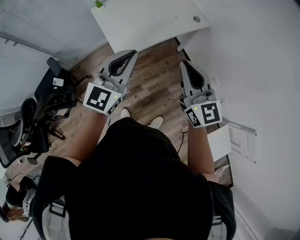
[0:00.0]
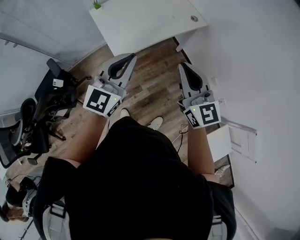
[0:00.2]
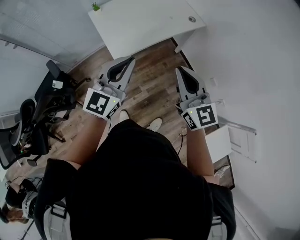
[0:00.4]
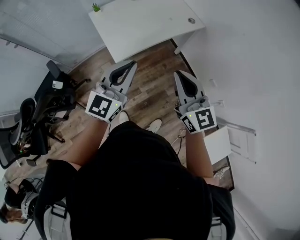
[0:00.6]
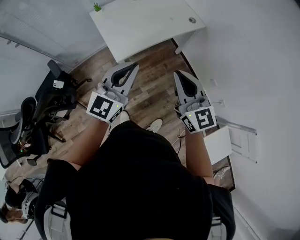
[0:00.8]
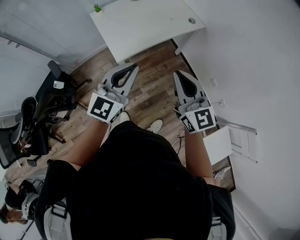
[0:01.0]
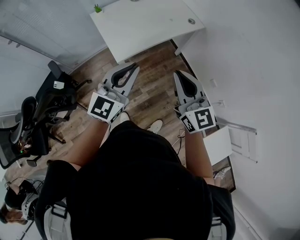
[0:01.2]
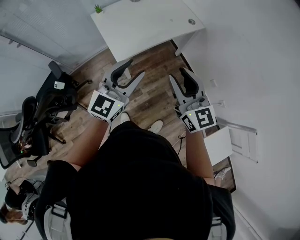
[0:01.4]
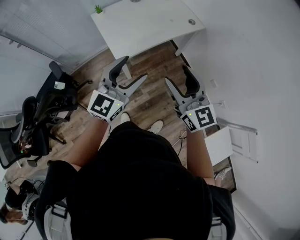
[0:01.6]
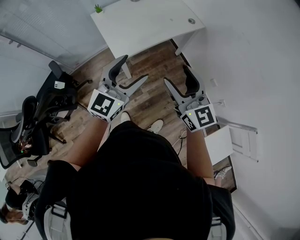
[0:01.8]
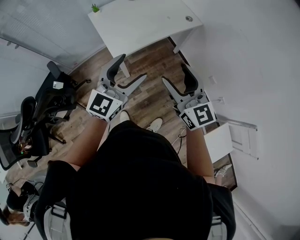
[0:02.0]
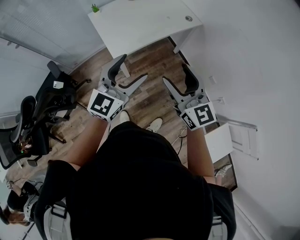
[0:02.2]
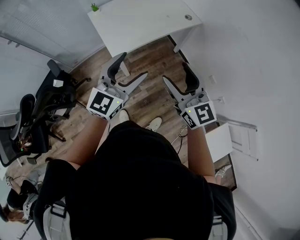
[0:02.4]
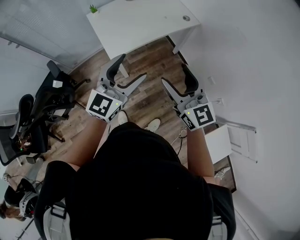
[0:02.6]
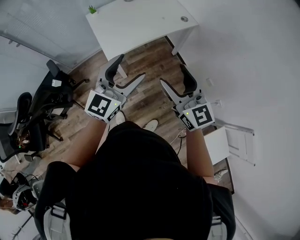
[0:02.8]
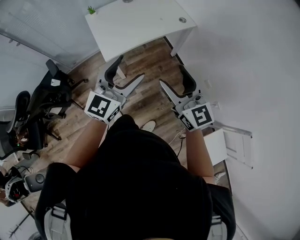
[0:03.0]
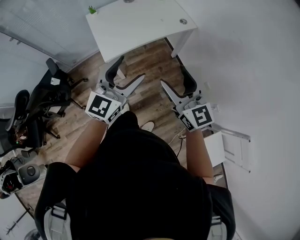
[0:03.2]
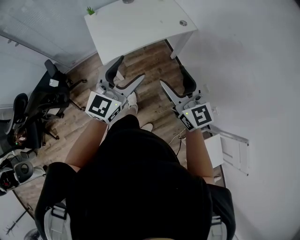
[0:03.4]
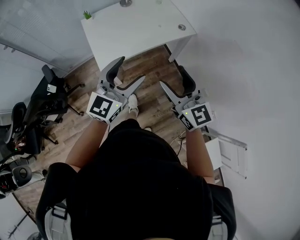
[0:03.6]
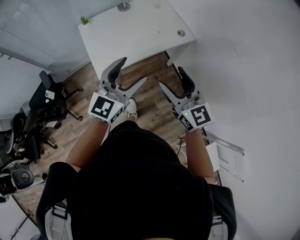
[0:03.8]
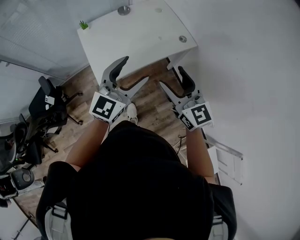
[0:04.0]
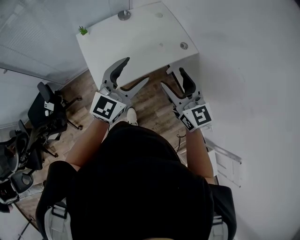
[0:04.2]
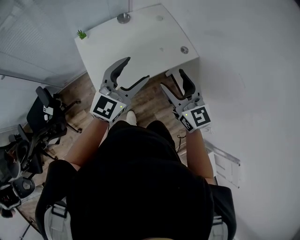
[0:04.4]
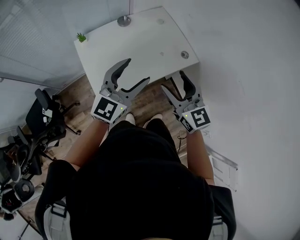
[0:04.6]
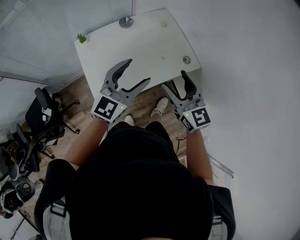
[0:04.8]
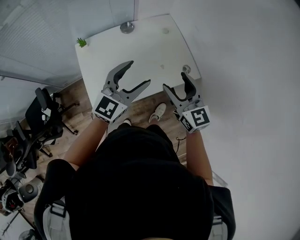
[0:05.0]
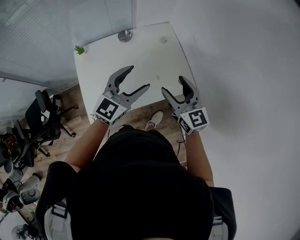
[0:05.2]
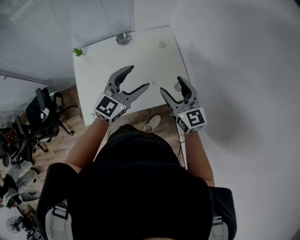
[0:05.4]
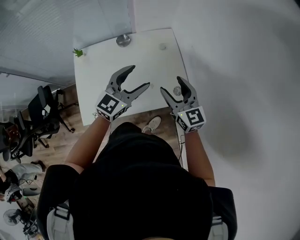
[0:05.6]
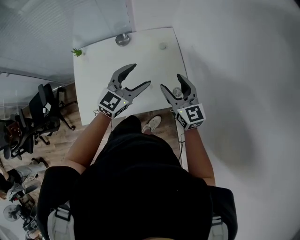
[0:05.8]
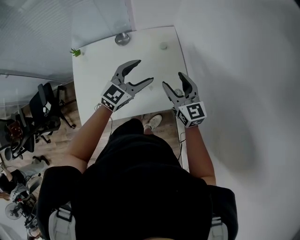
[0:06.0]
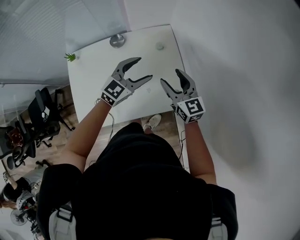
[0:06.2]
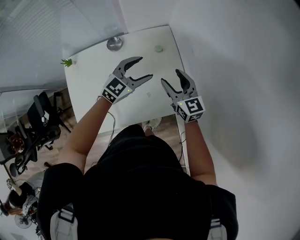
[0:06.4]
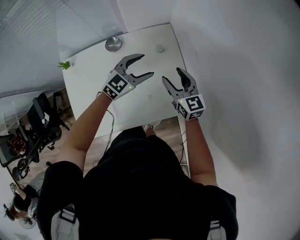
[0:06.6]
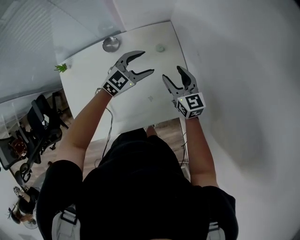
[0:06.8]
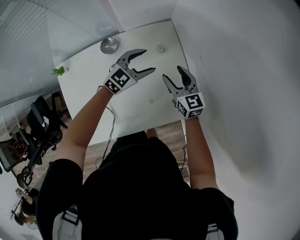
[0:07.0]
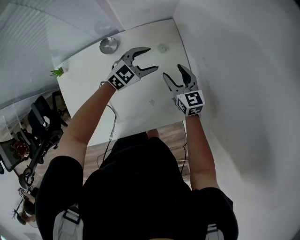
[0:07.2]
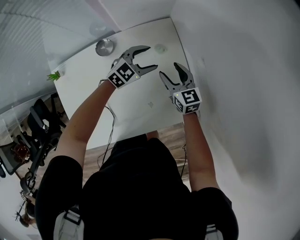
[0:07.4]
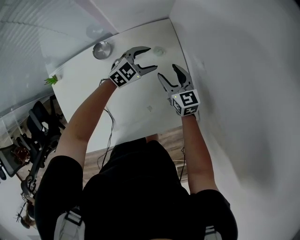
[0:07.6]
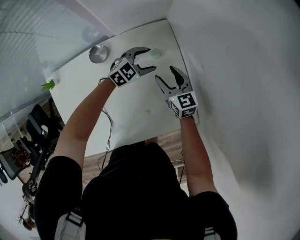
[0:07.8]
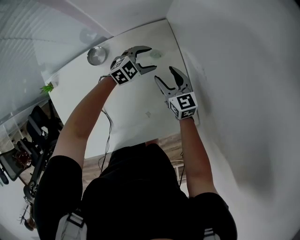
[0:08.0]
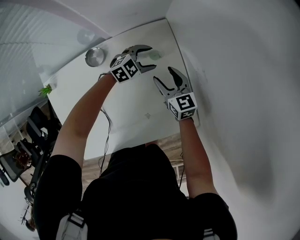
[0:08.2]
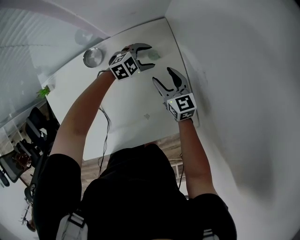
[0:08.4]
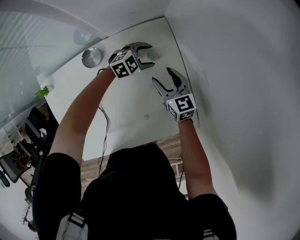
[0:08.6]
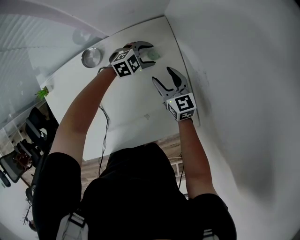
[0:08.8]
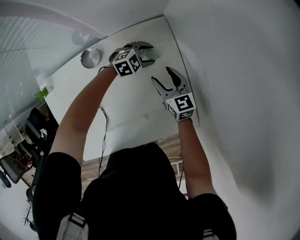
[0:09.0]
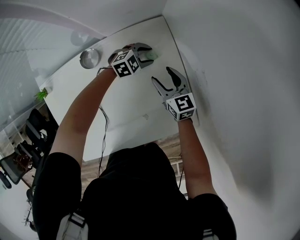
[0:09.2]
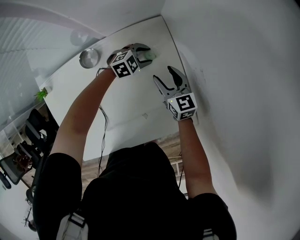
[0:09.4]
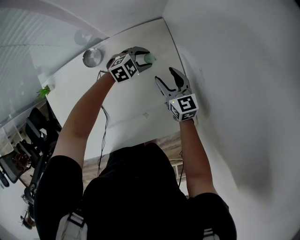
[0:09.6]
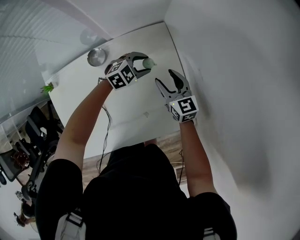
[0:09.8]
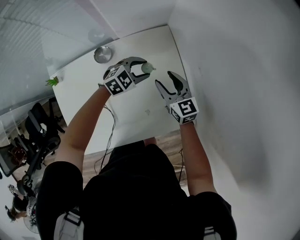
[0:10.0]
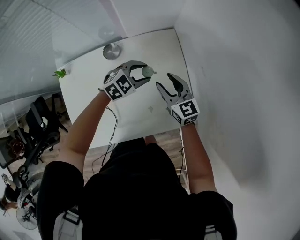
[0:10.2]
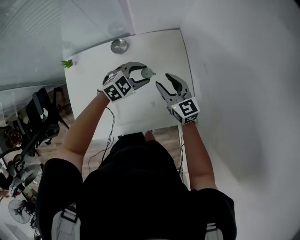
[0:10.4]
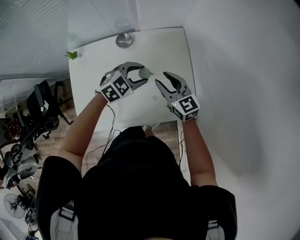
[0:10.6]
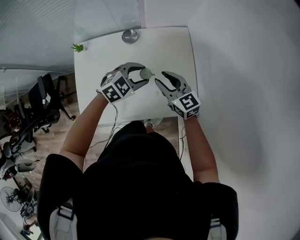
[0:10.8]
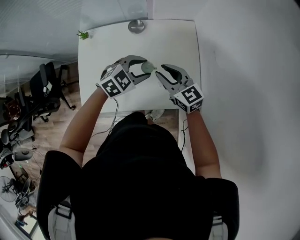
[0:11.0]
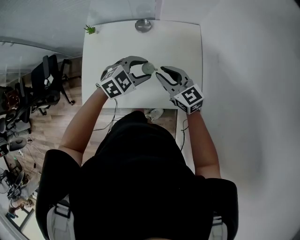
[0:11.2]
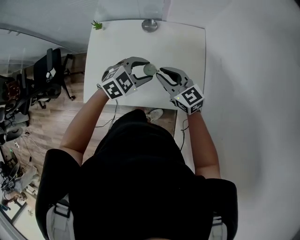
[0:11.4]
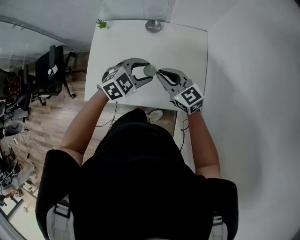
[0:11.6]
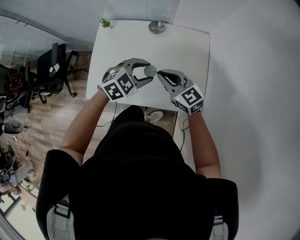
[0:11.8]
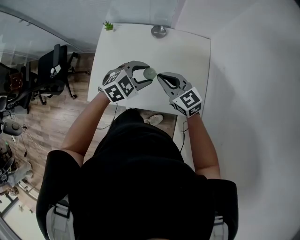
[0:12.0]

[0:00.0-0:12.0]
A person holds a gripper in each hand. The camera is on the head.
0:00.0 to 0:01.6: Both grippers move backward, roughly 5 cm. The right gripper opens; the left gripper opens its fingers.
0:01.6 to 0:03.0: The grippers both shift to the right by roughly 10 cm.
0:03.0 to 0:04.4: Both grippers travel together forward, roughly 30 cm.
0:04.4 to 0:06.0: Both grippers travel together forward and to the right, some 35 cm.
0:06.0 to 0:07.6: Both grippers move downward and forward, roughly 30 cm. The left gripper rotates some 30 degrees.
0:07.6 to 0:09.0: The right gripper moves about 5 cm. Meanwhile the left gripper shifts approximately 10 cm downward and forward, and swivels some 20 degrees.
0:09.0 to 0:10.4: Both grippers travel together upward and backward, about 20 cm.
0:10.4 to 0:12.0: The right gripper moves about 20 cm, rotates some 30 degrees, and closes up. Meanwhile the left gripper changes place by approximately 20 cm.

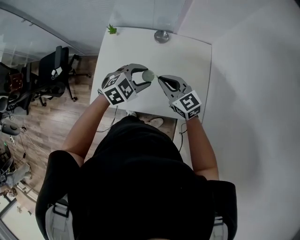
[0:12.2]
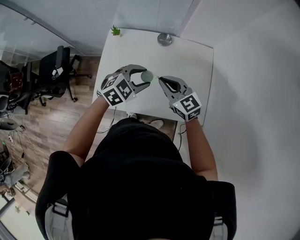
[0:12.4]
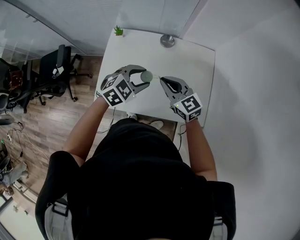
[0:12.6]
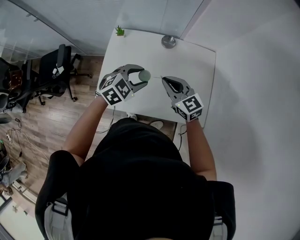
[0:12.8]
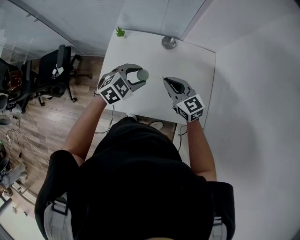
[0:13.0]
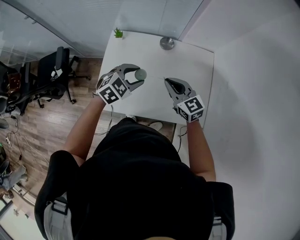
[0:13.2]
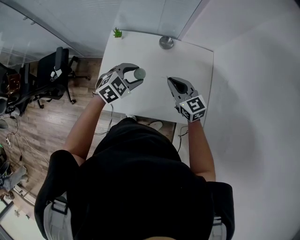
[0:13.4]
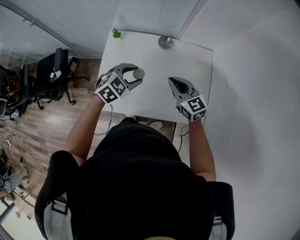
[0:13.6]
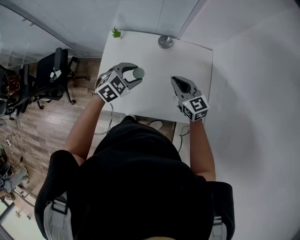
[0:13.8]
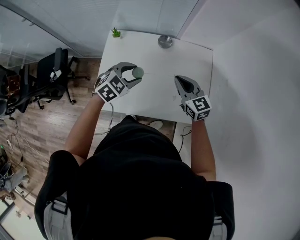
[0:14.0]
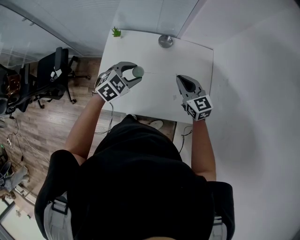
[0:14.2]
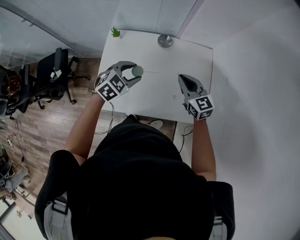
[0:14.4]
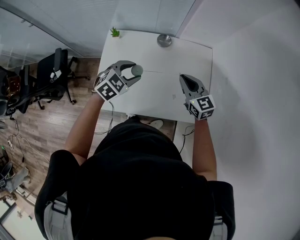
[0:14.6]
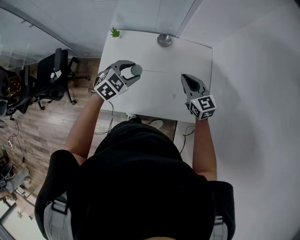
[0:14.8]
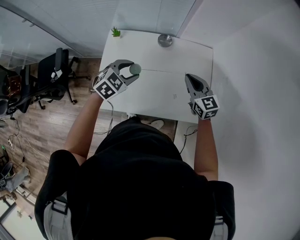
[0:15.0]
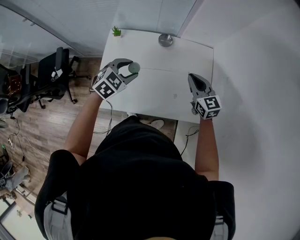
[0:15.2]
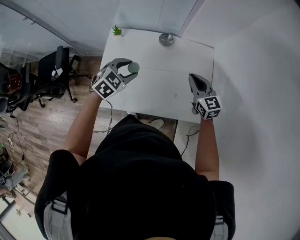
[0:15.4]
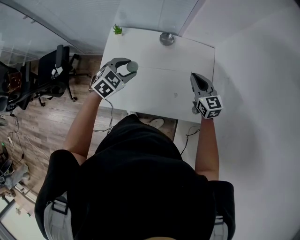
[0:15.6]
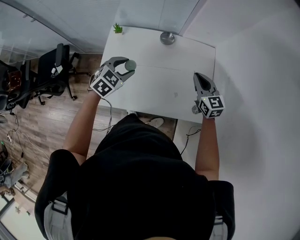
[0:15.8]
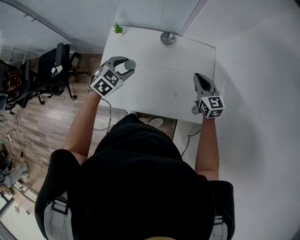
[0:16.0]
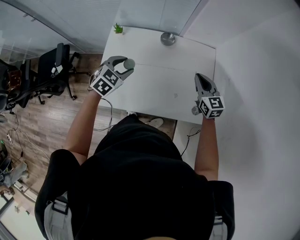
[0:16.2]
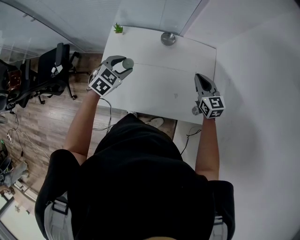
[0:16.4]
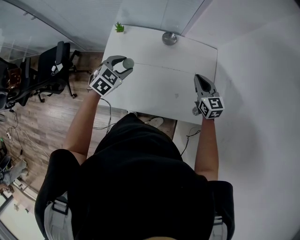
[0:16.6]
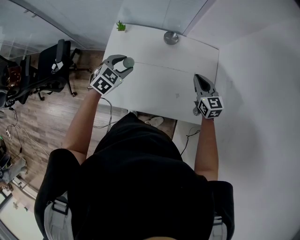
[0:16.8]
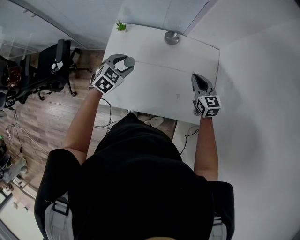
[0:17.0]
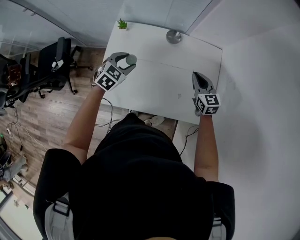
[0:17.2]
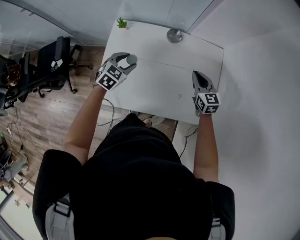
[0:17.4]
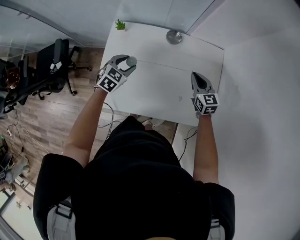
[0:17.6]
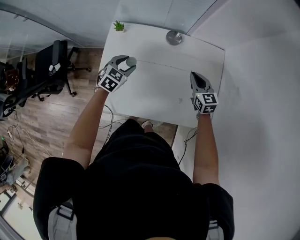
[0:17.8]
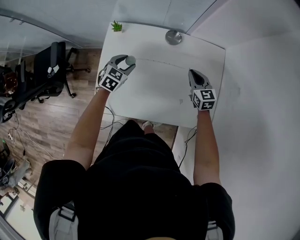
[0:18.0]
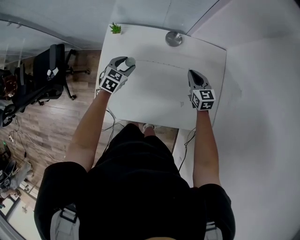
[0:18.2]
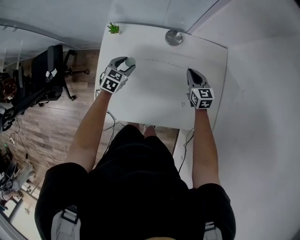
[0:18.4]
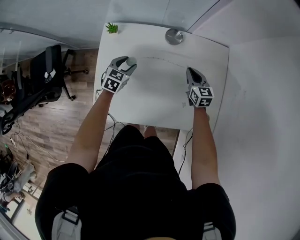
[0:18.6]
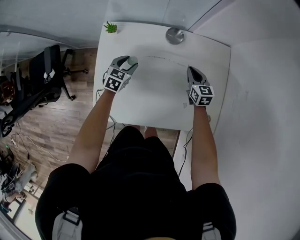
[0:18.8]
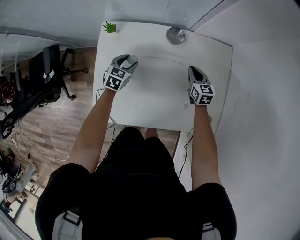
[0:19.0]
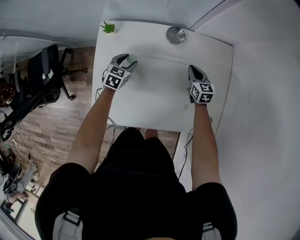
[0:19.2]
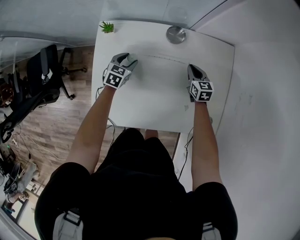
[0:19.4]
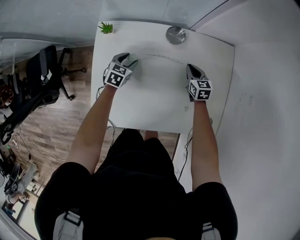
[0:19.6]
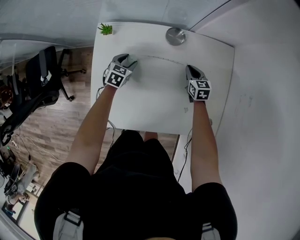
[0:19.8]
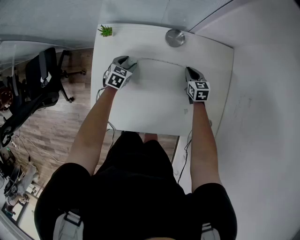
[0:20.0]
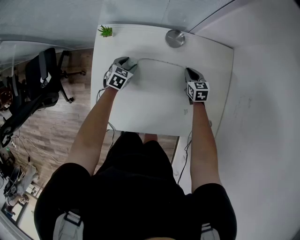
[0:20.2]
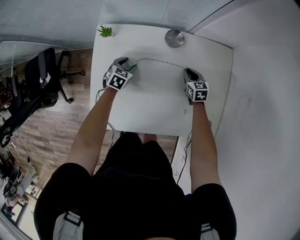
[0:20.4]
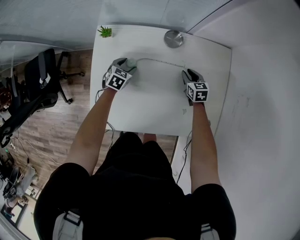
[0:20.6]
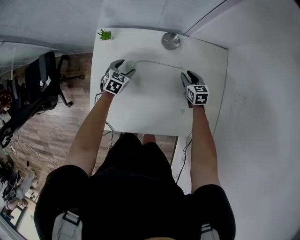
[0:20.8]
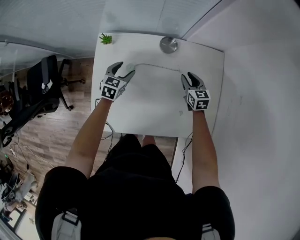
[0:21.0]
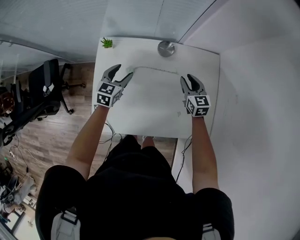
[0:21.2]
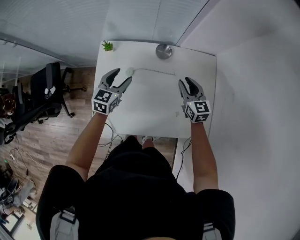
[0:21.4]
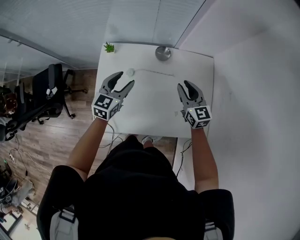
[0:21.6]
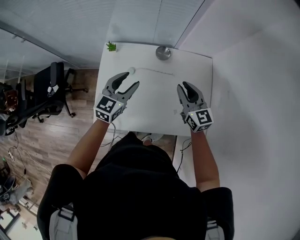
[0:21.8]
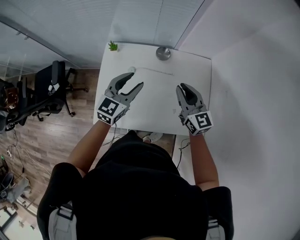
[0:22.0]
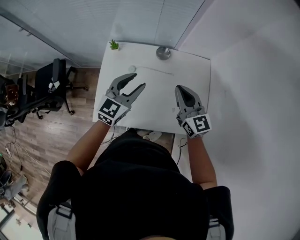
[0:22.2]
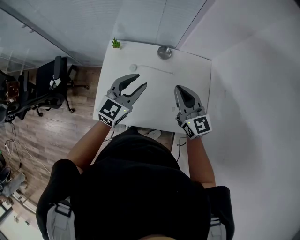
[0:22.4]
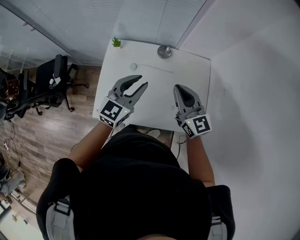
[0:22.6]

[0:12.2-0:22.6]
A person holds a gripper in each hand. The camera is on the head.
0:12.2 to 0:13.6: The left gripper travels to the left by roughly 10 cm.
0:13.6 to 0:15.2: The right gripper travels to the right by some 10 cm.
0:15.2 to 0:16.6: The grippers move only a little.
0:16.6 to 0:18.2: Both grippers travel together downward and forward, roughly 15 cm.
0:18.2 to 0:19.6: The grippers both shift downward and forward by about 15 cm.
0:19.6 to 0:21.2: Both grippers move upward, some 15 cm. The right gripper opens.
0:21.2 to 0:22.6: Both grippers move upward and backward, about 30 cm. The right gripper rotates some 30 degrees, and closes. Meanwhile the left gripper rotates about 30 degrees, and closes up.

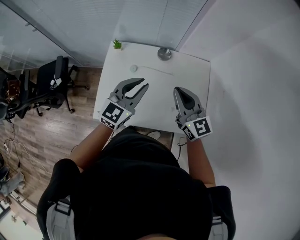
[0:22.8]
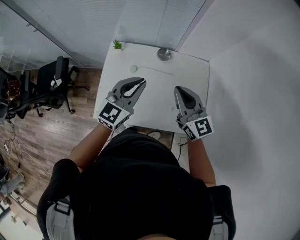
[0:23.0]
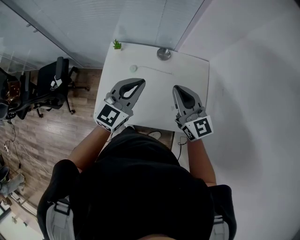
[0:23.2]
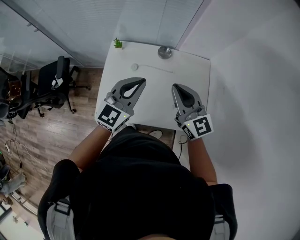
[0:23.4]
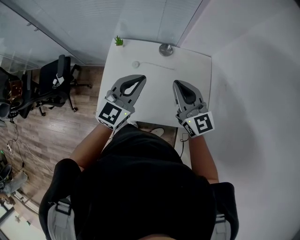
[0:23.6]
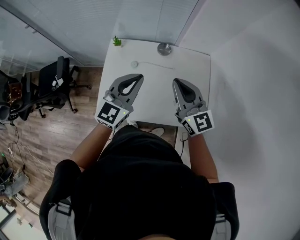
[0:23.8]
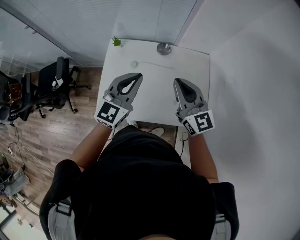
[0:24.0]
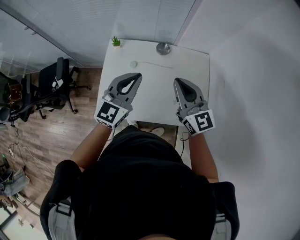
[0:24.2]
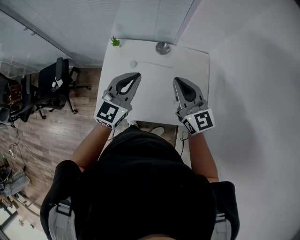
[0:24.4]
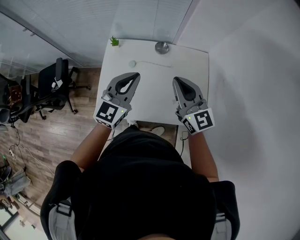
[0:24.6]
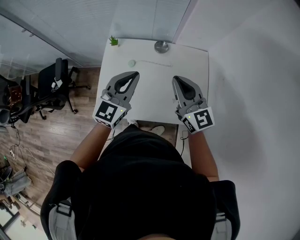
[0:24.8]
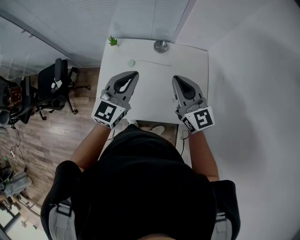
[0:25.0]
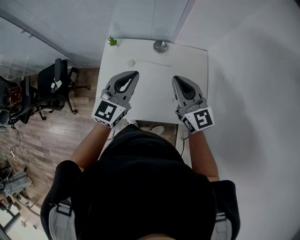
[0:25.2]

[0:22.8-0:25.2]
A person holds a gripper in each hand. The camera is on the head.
0:22.8 to 0:25.2: There are only small adjustments of the grippers.
